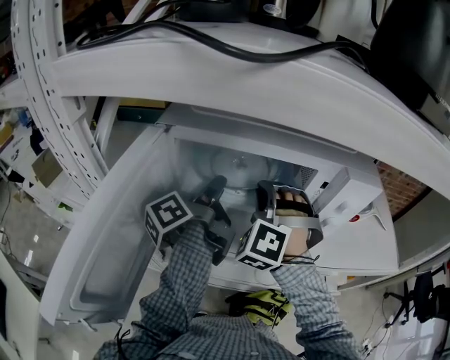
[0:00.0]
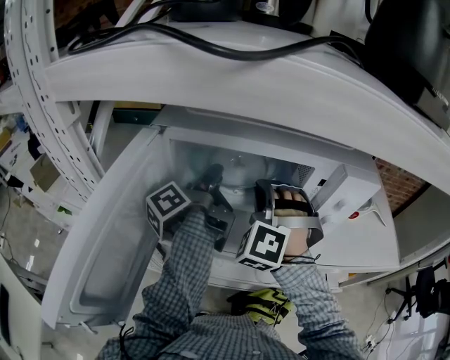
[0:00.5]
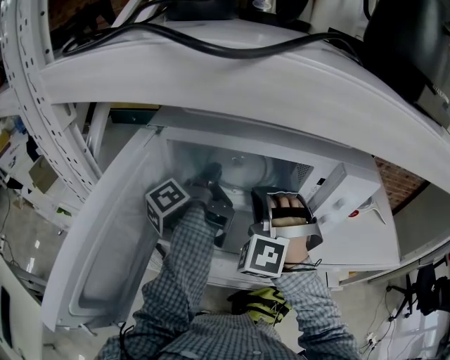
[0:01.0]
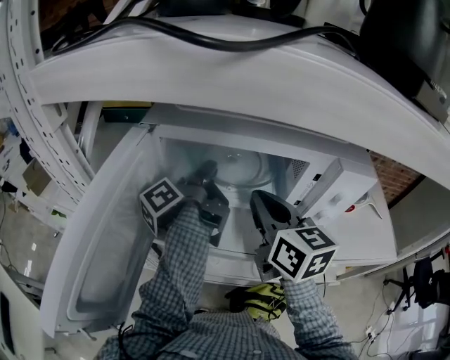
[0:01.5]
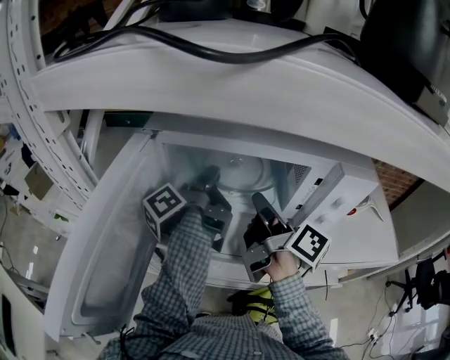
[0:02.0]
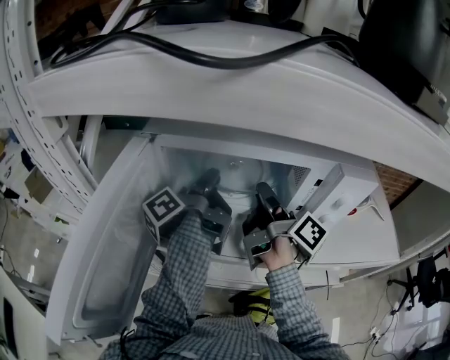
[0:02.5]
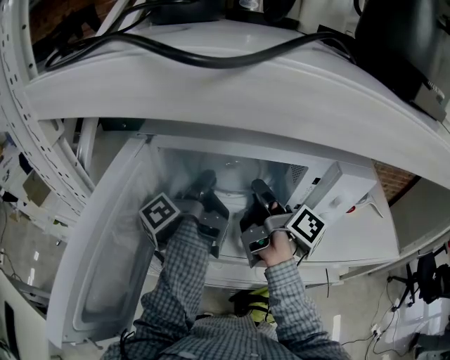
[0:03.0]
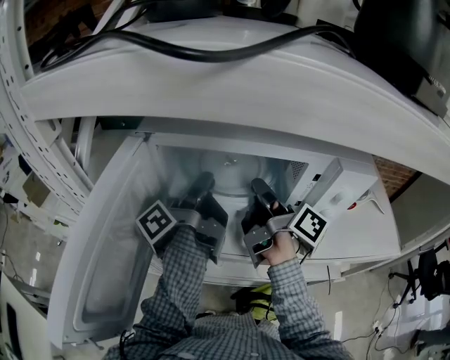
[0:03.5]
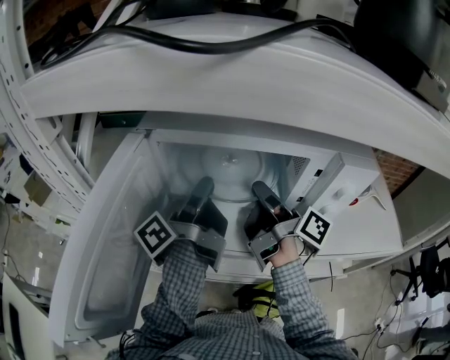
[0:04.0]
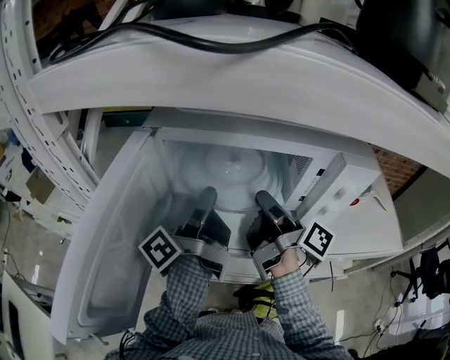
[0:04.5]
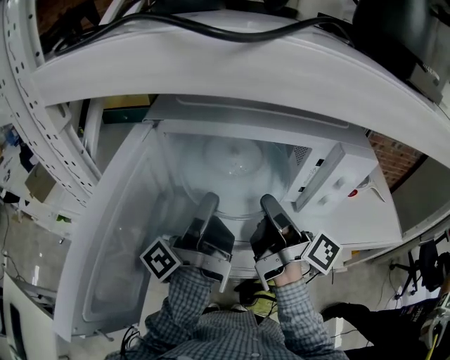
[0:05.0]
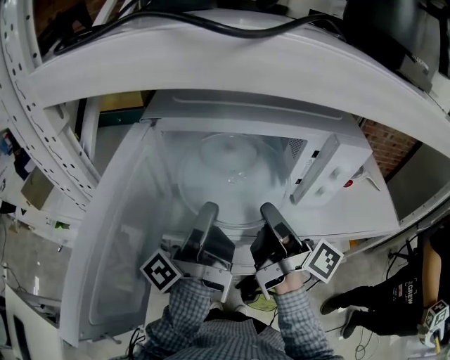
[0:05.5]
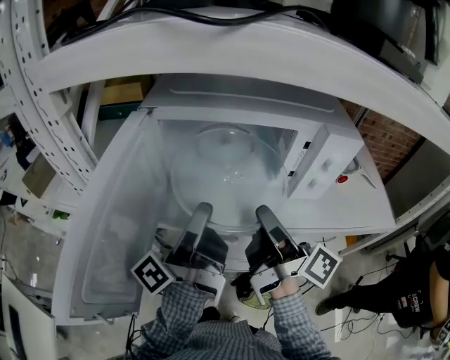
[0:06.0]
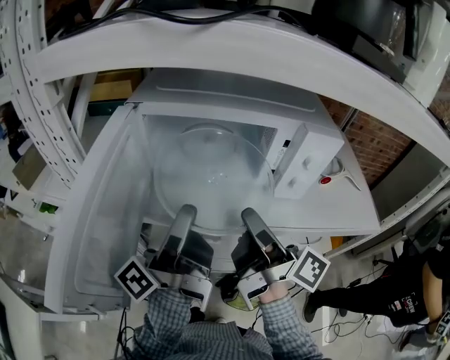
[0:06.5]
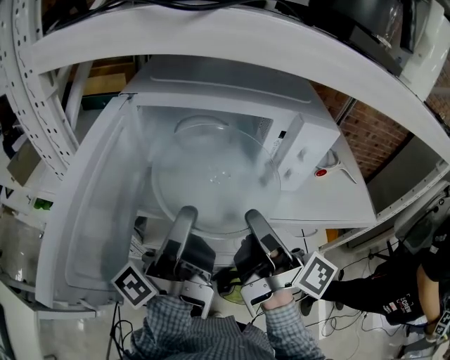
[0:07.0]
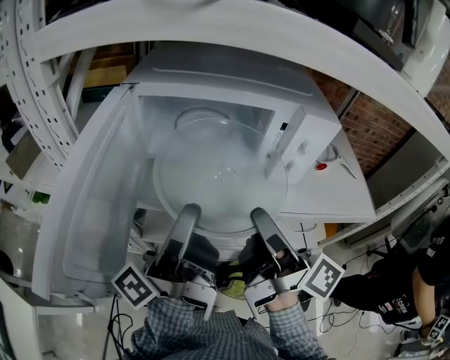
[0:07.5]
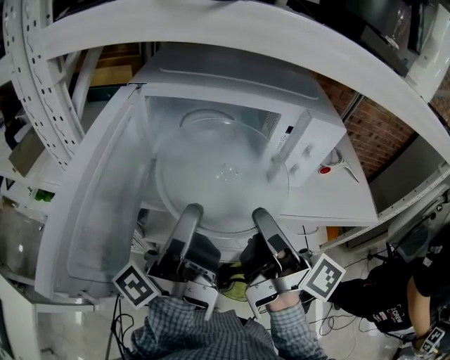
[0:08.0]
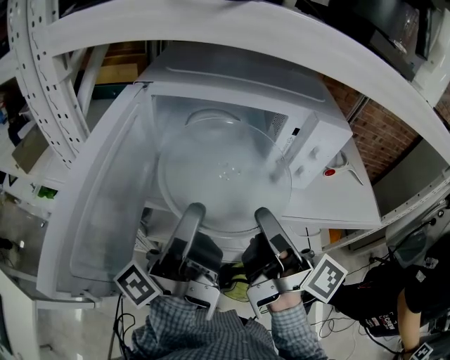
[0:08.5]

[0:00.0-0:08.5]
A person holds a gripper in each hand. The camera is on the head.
0:00.0 to 0:02.0: The right gripper rotates around the line of its fingers by about 140 degrees, clockwise from behind.
0:02.0 to 0:04.0: The left gripper shifts roughly 5 cm backward.
0:04.0 to 0:06.5: Both grippers move backward, about 15 cm.
0:06.5 to 0:08.5: The grippers move only a little.

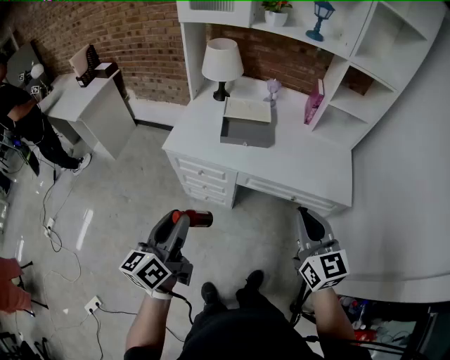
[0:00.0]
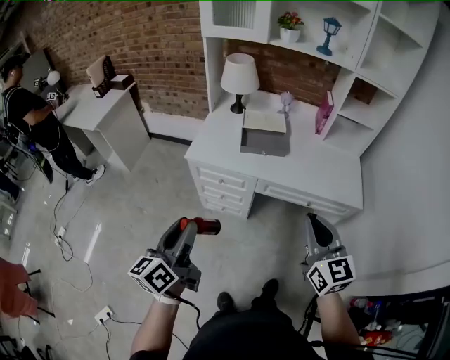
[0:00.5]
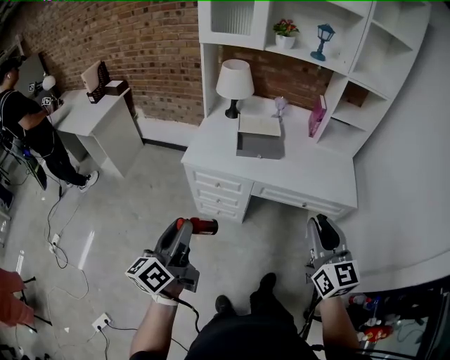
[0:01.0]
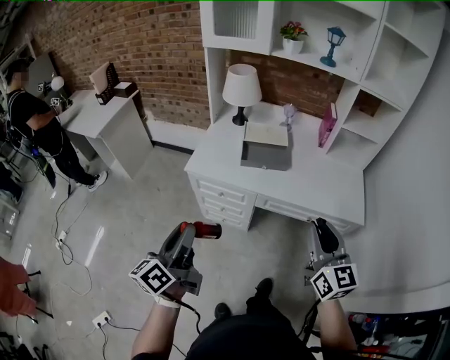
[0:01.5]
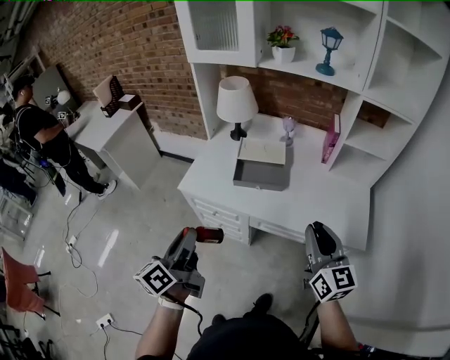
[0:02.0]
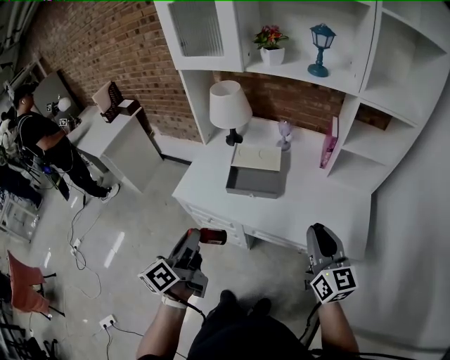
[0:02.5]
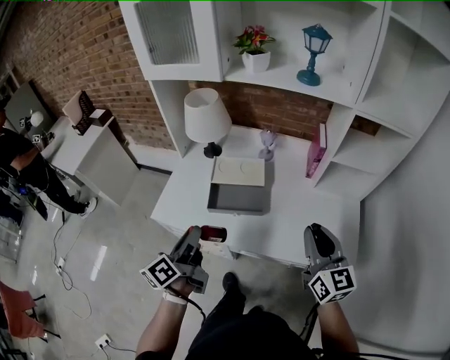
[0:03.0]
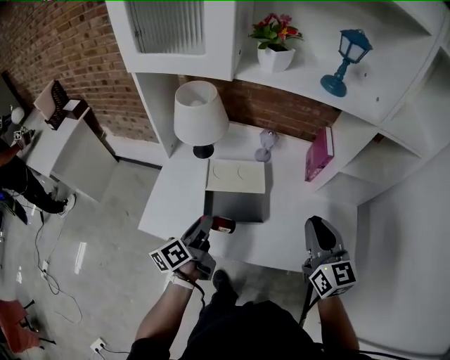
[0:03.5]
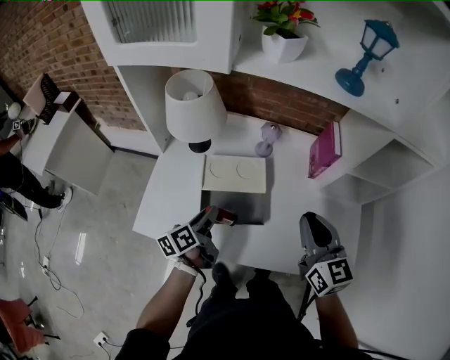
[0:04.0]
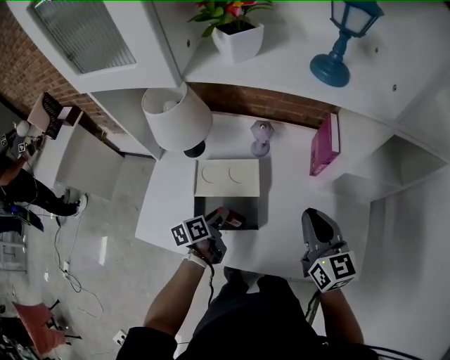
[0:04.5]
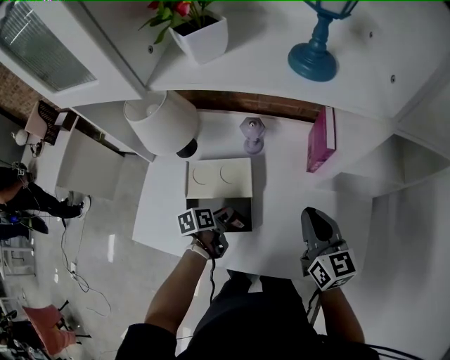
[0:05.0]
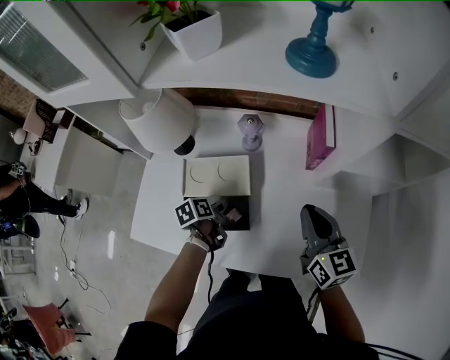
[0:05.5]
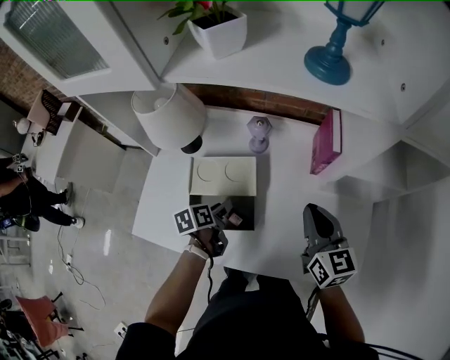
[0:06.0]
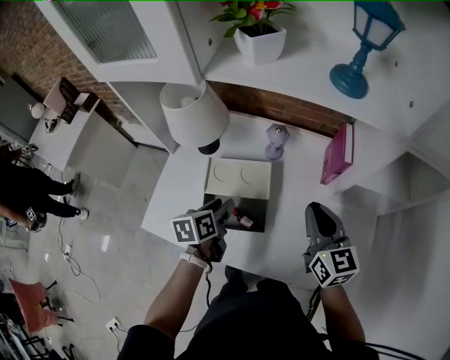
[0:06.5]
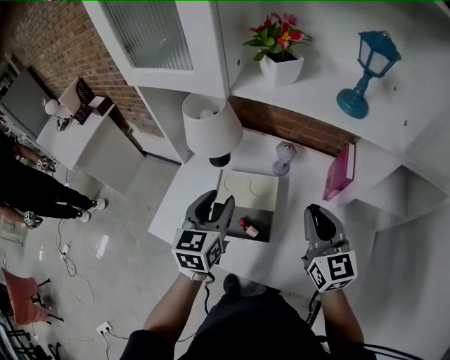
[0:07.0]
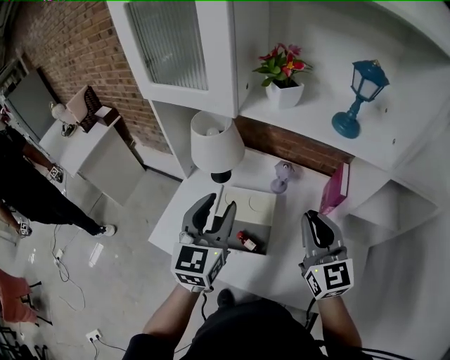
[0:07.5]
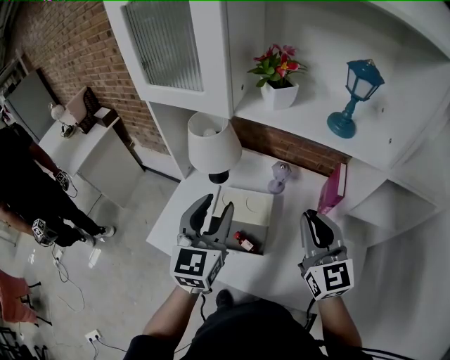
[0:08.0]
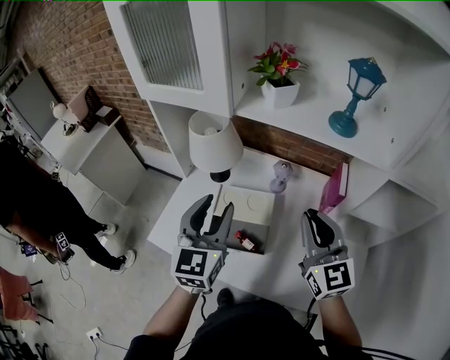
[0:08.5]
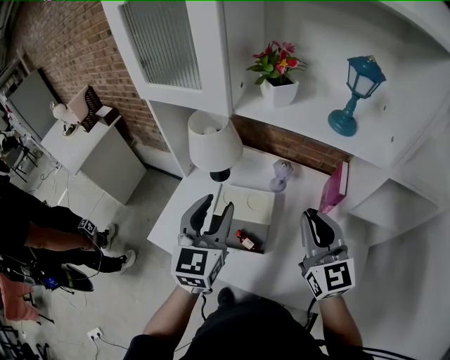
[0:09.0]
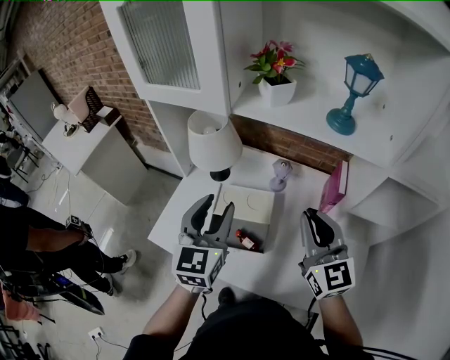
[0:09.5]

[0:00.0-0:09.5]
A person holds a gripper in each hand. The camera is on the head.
0:00.0 to 0:02.0: The right gripper moves forward and to the right, about 15 cm. Meanwhile the left gripper travels forward by about 10 cm.
0:02.0 to 0:04.0: The right gripper moves forward, about 30 cm. Meanwhile the left gripper shifts some 40 cm forward and downward, and turns by roughly 30 degrees.
0:04.0 to 0:05.5: The right gripper moves to the right, forward and downward, approximately 15 cm. The left gripper is displaced downward, to the right and forward by some 15 cm, and points its fingers about 30 degrees further downward.
0:05.5 to 0:07.5: The right gripper heads upward and to the left, covering approximately 20 cm, and swivels approximately 30 degrees. The left gripper goes some 35 cm upward, and points its fingers some 50 degrees further upward.
0:07.5 to 0:09.5: Both grippers stay put.

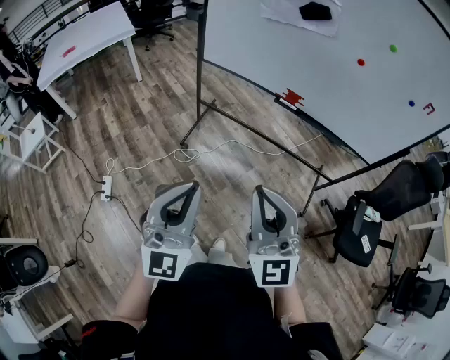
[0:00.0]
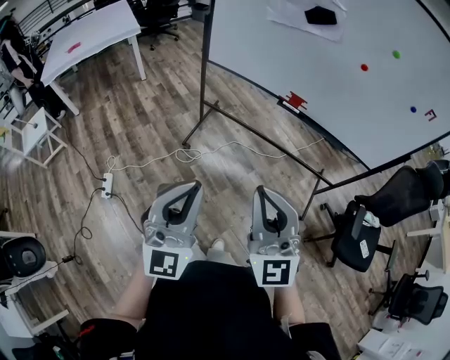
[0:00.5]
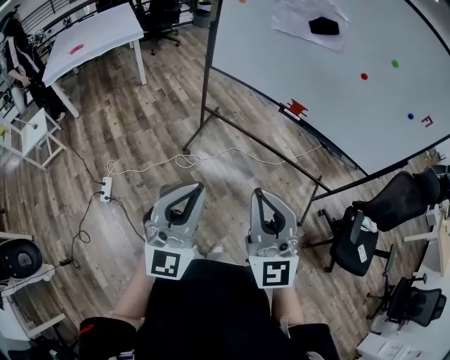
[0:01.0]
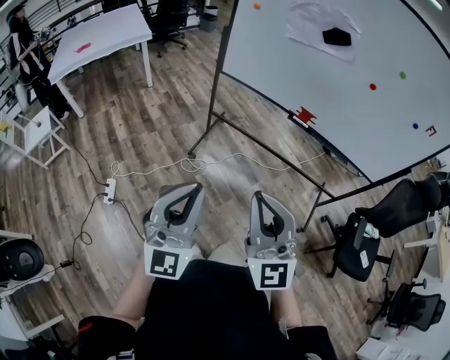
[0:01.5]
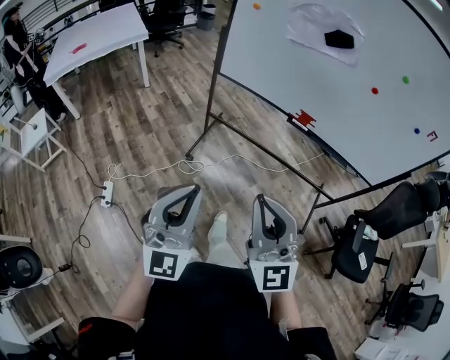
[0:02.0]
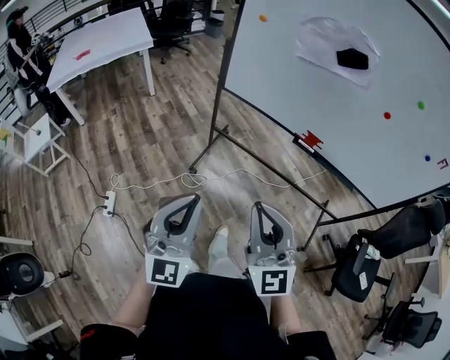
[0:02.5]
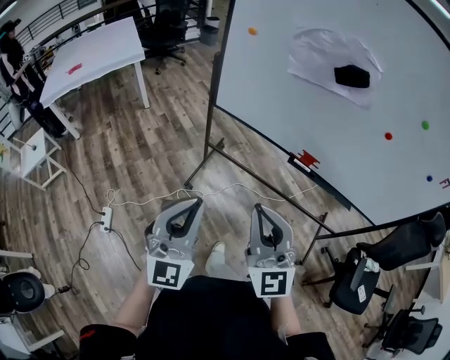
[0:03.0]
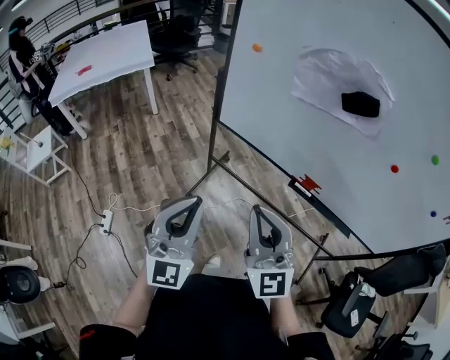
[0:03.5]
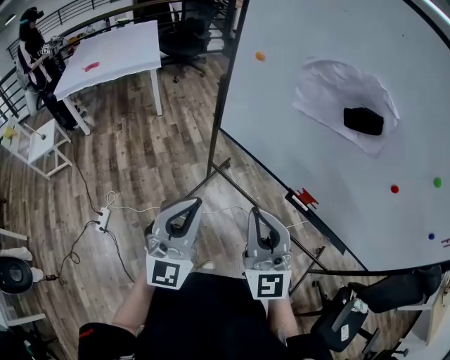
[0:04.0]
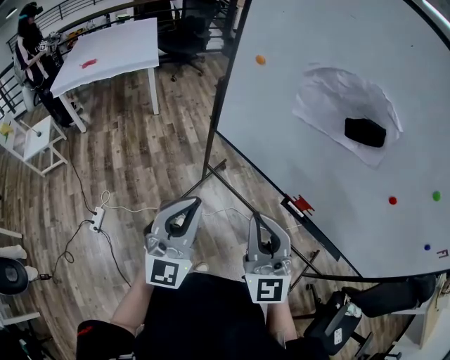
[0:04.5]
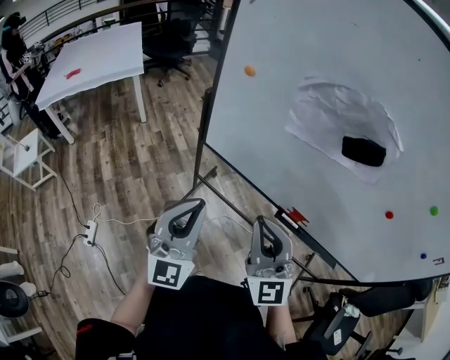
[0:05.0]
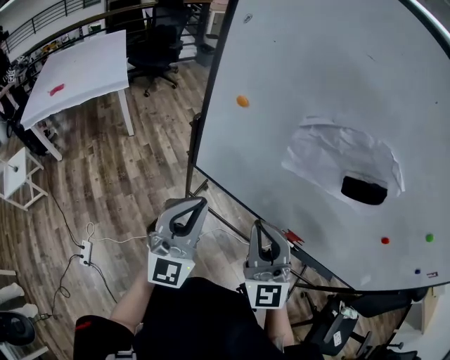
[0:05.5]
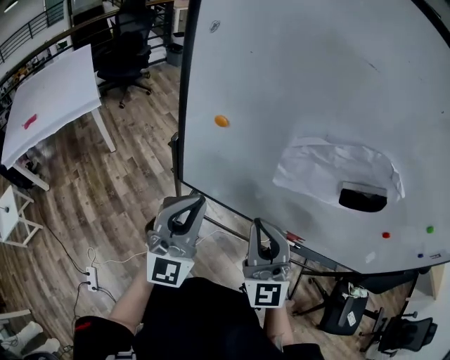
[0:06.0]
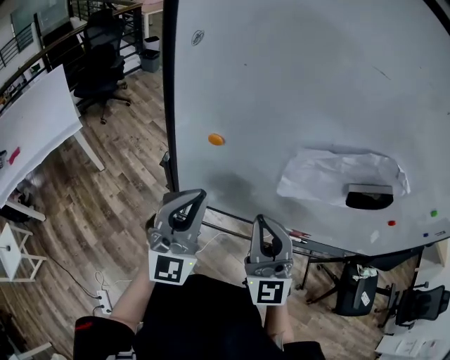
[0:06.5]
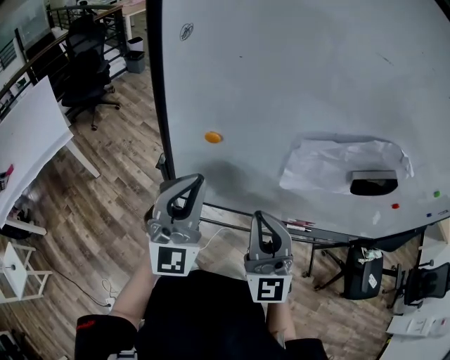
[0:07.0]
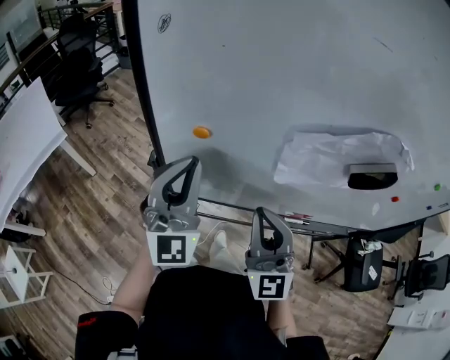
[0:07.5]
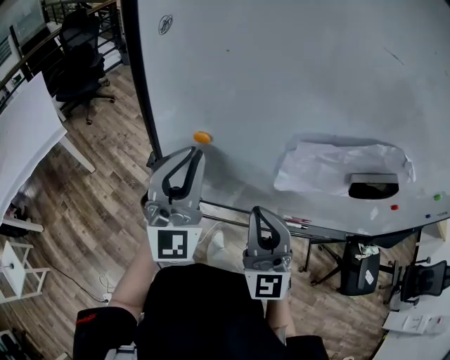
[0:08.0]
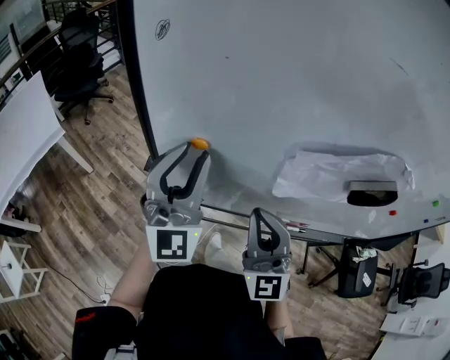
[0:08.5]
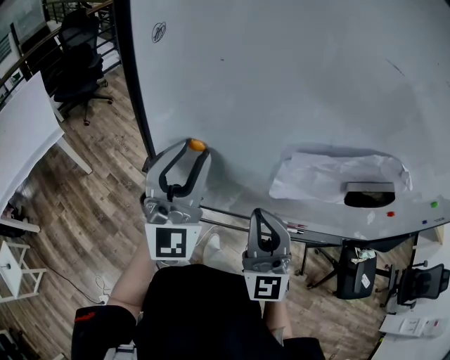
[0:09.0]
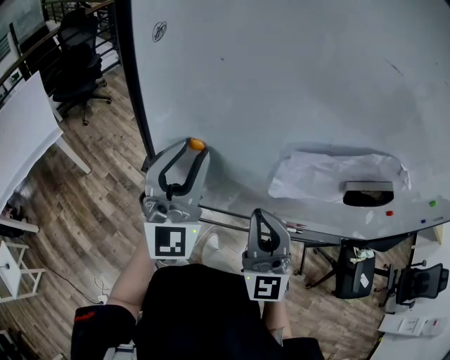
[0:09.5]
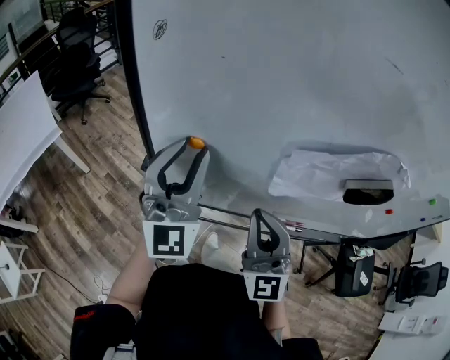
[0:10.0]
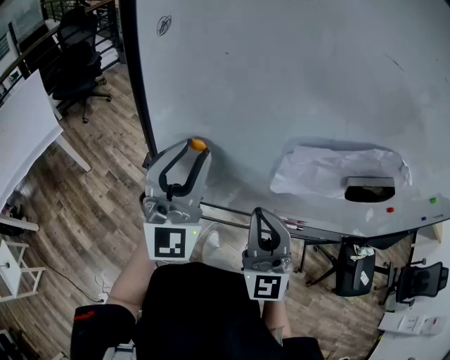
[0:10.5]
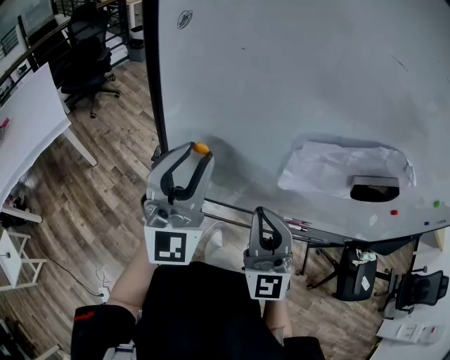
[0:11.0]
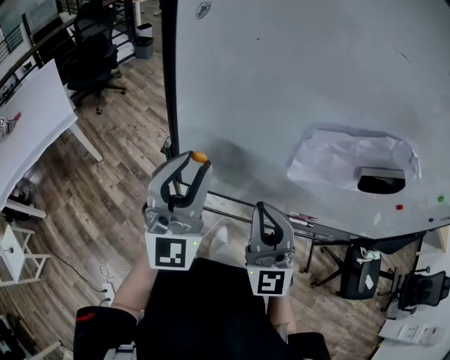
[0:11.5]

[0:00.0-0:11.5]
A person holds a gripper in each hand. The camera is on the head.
0:00.0 to 0:02.0: The two grippers go roughly 10 cm to the left.
0:02.0 to 0:04.0: Both grippers move forward, approximately 30 cm.
0:04.0 to 0:06.0: Both grippers travel together forward, some 30 cm. The right gripper turns by about 20 degrees.
0:06.0 to 0:07.5: The right gripper shifts by roughly 5 cm; the left gripper is displaced forward by approximately 10 cm.
0:07.5 to 0:09.5: The left gripper opens up.
0:09.5 to 0:11.5: The left gripper goes some 5 cm backward.
